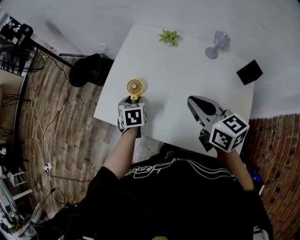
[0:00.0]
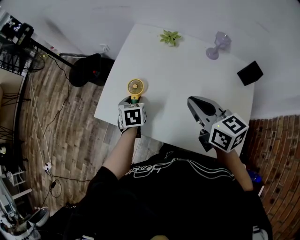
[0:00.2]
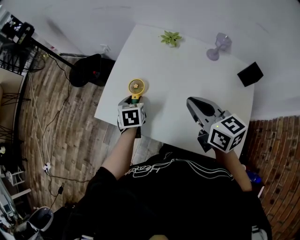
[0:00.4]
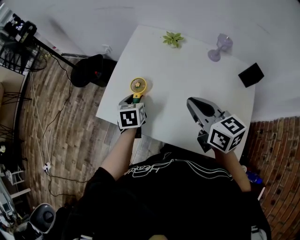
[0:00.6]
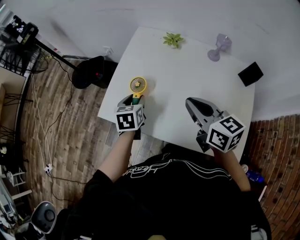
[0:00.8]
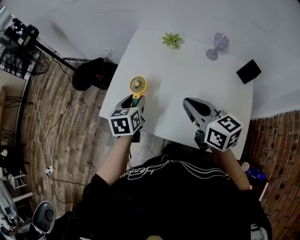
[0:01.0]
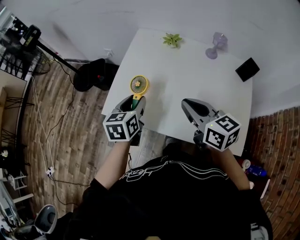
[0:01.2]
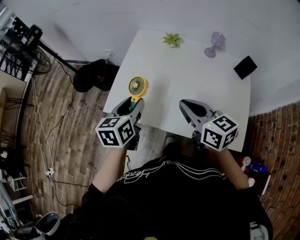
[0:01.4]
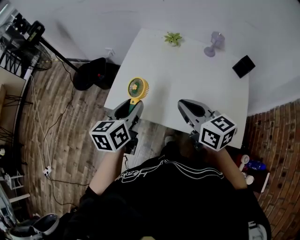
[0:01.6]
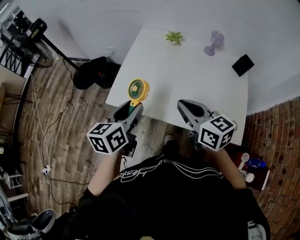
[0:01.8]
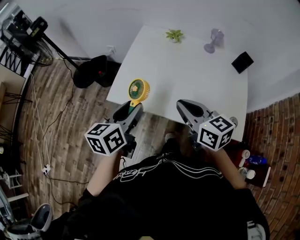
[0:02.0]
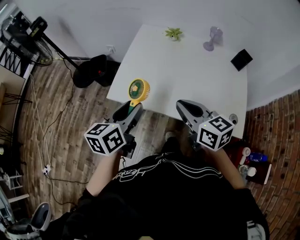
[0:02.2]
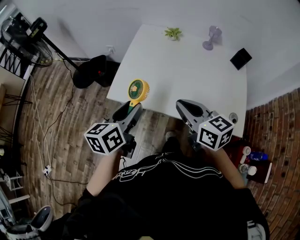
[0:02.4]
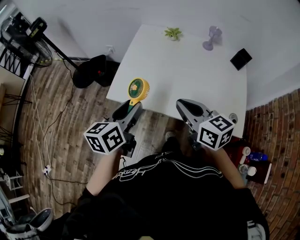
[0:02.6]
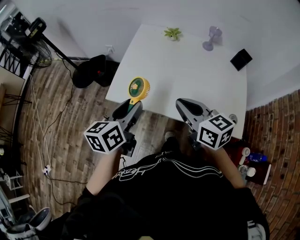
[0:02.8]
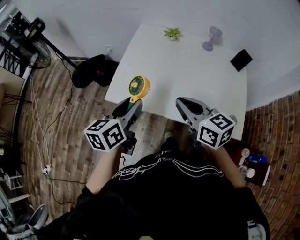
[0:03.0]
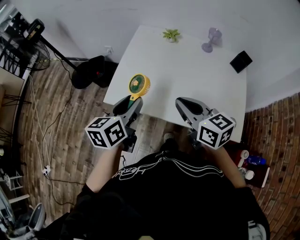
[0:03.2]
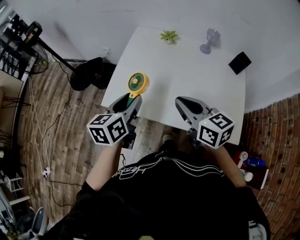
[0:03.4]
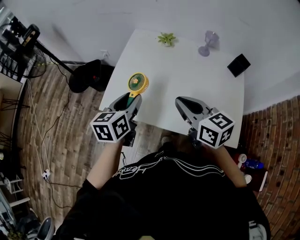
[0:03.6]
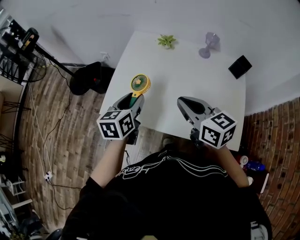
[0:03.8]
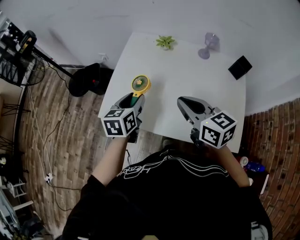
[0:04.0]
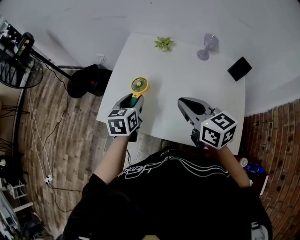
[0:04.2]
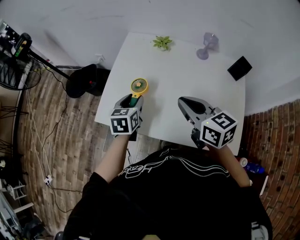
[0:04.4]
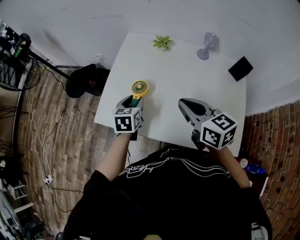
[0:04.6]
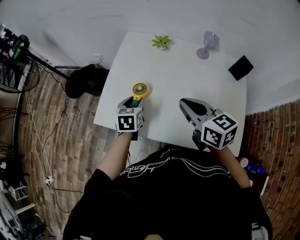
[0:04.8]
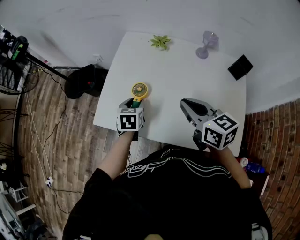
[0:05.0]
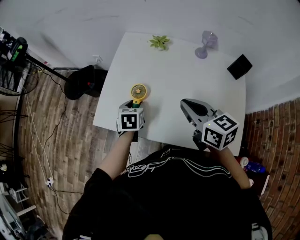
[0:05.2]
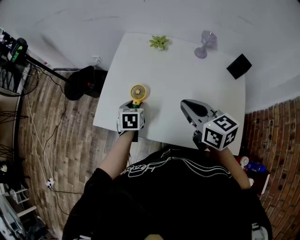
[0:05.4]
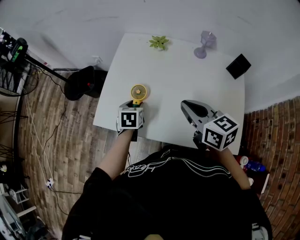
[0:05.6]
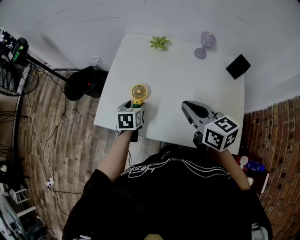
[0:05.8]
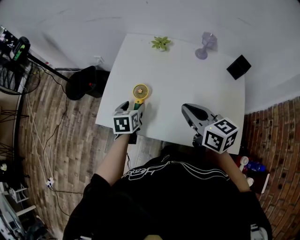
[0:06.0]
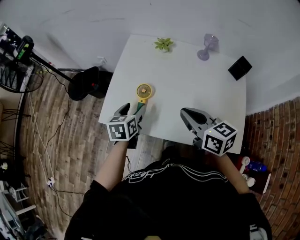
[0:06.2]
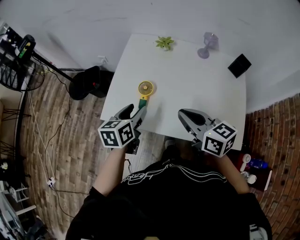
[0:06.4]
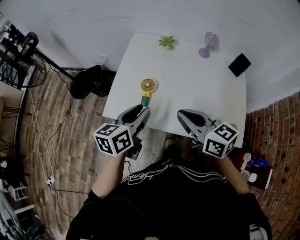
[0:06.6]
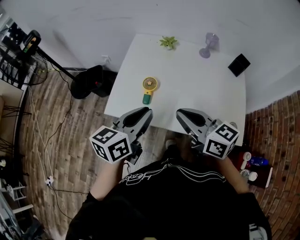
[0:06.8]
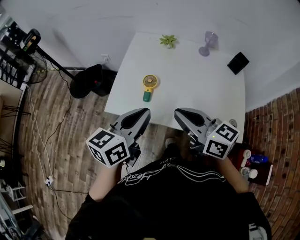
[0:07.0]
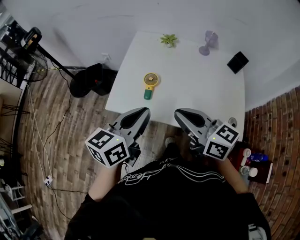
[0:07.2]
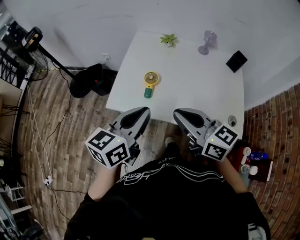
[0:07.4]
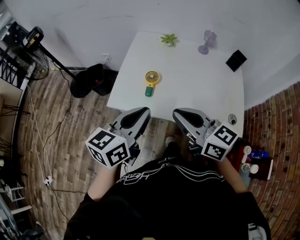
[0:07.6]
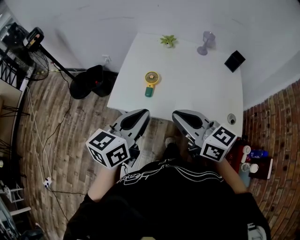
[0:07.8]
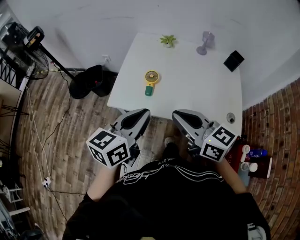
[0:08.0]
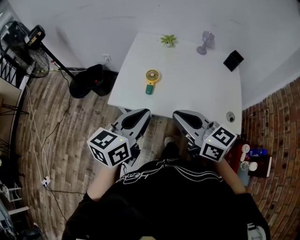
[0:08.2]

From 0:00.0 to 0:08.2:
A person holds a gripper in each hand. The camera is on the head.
From 0:00.0 to 0:01.6: The right gripper moves to the left and backward, approximately 10 cm. The left gripper moves upward and backward, roughly 20 cm, and turns by about 40 degrees.
From 0:03.2 to 0:05.0: The left gripper moves downward and forward, about 20 cm, and changes its angle by roughly 30 degrees; the right gripper goes about 10 cm forward and to the right.
From 0:05.0 to 0:06.6: The left gripper goes about 20 cm upward and backward, and turns by some 30 degrees; the right gripper moves backward and to the left, roughly 10 cm.
From 0:06.6 to 0:08.2: The right gripper heads backward and to the left, covering roughly 10 cm. The left gripper is displaced backward and upward by roughly 15 cm, and closes up.

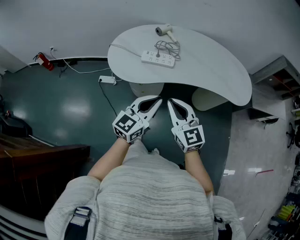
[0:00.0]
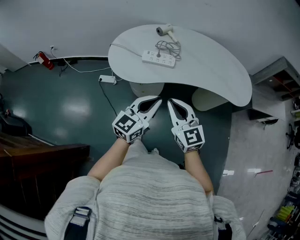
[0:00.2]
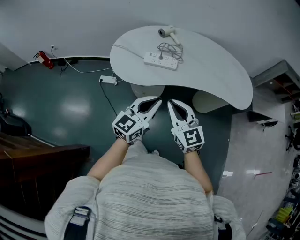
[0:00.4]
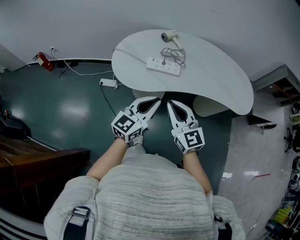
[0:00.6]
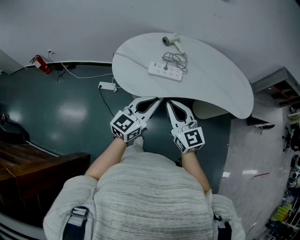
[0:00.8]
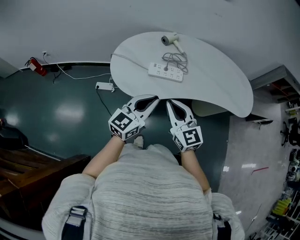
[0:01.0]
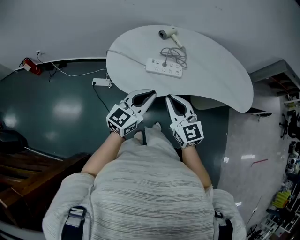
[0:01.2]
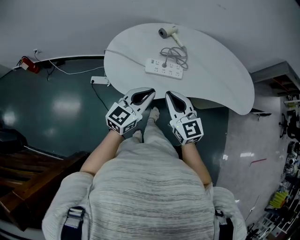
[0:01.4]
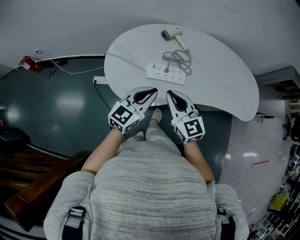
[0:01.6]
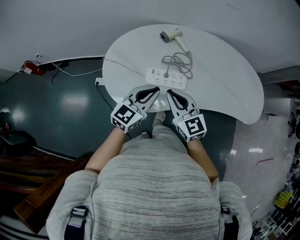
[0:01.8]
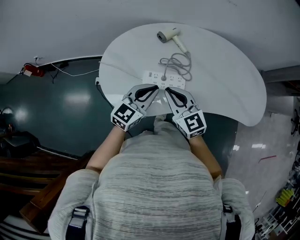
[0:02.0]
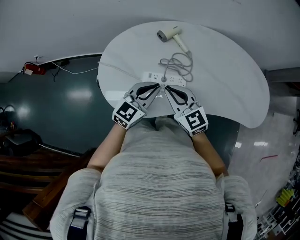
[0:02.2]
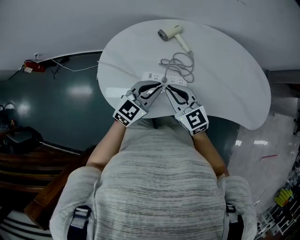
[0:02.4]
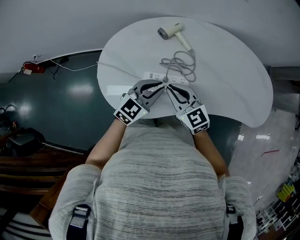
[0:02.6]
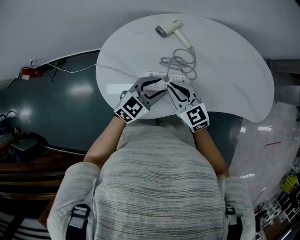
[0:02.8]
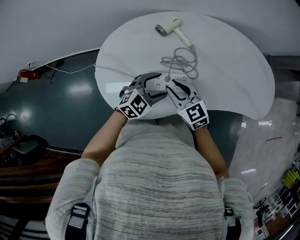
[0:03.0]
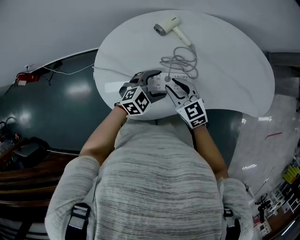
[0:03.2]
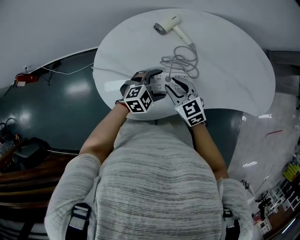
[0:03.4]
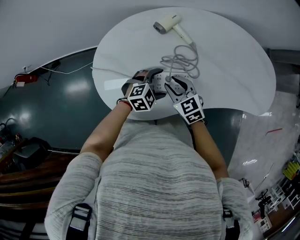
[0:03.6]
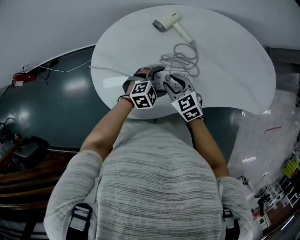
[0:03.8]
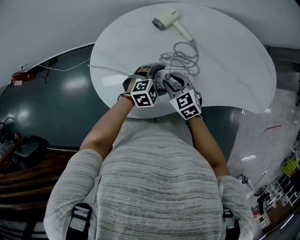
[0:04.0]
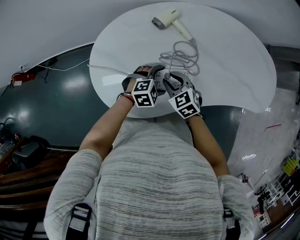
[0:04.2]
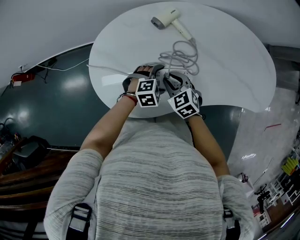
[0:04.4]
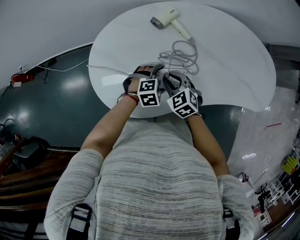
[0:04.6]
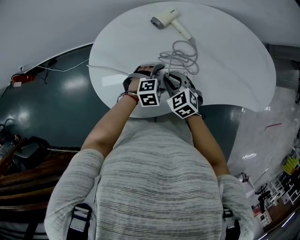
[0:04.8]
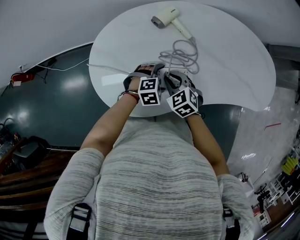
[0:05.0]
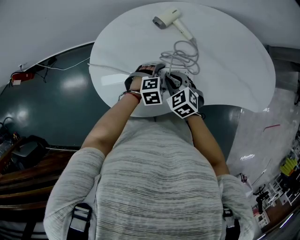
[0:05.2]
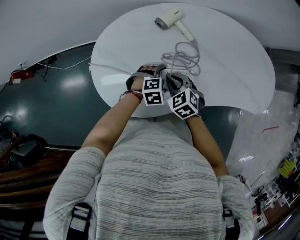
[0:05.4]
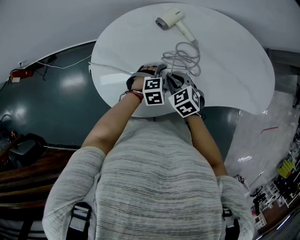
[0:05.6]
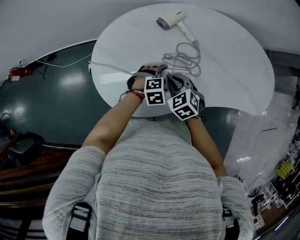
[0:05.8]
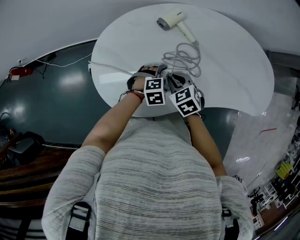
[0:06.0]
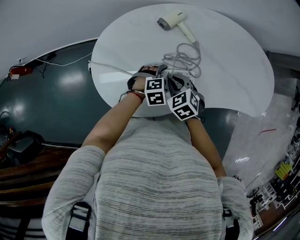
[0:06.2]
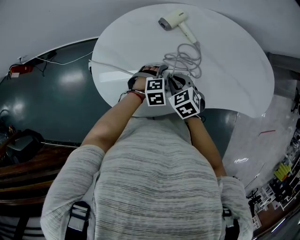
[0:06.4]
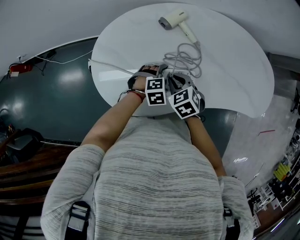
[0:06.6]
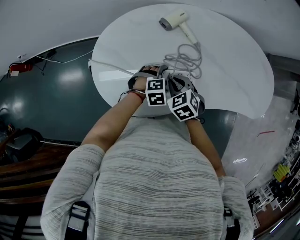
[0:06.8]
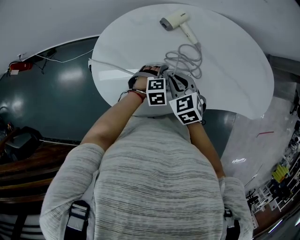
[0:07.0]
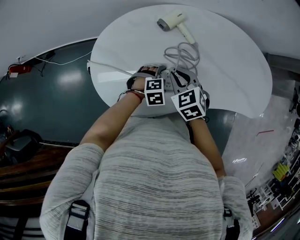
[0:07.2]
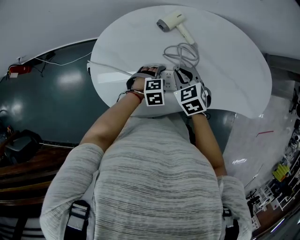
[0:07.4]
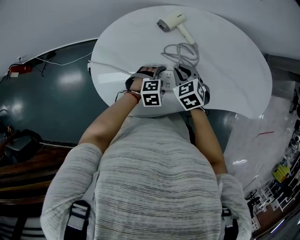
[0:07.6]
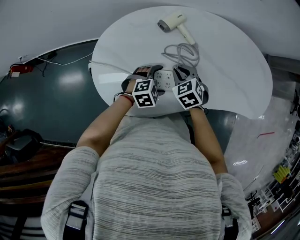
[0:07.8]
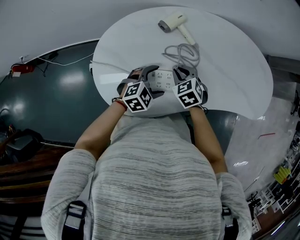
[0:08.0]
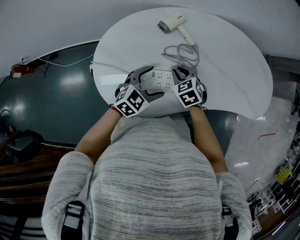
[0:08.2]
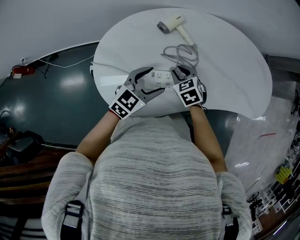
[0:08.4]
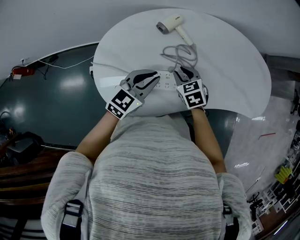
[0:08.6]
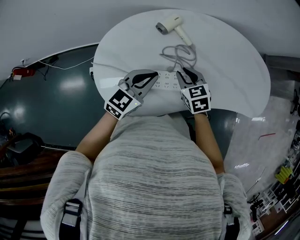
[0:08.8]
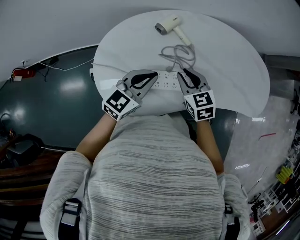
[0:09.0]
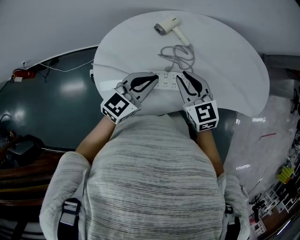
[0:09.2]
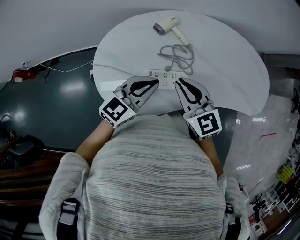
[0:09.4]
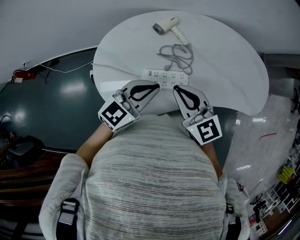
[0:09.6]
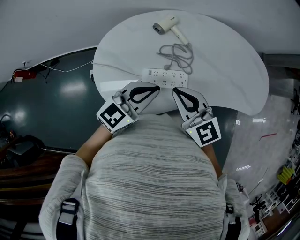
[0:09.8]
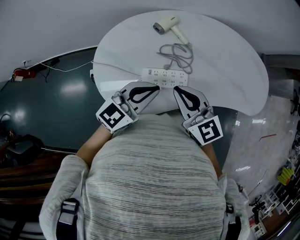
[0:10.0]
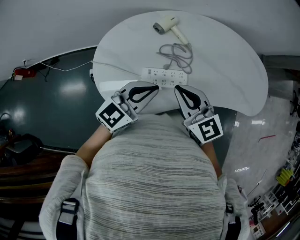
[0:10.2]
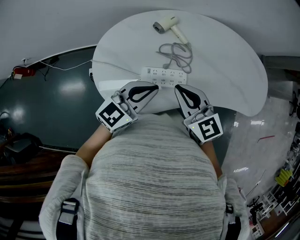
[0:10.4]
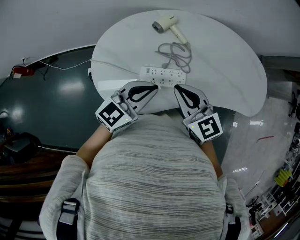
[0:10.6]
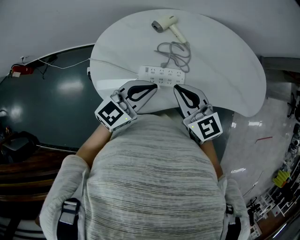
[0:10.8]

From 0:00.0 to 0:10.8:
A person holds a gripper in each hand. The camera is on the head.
From 0:00.0 to 0:01.6: The two grippers go approximately 25 cm forward and to the left.
From 0:01.6 to 0:03.0: The two grippers go some 20 cm forward and downward. The left gripper turns by approximately 40 degrees, and opens up.
From 0:03.0 to 0:04.6: Both grippers move downward, about 10 cm. The right gripper turns by about 20 degrees, while the left gripper changes its angle by some 30 degrees.
From 0:04.6 to 0:06.2: The grippers make only small movements.
From 0:06.2 to 0:07.8: The right gripper shifts some 5 cm forward.
From 0:07.8 to 0:09.2: The grippers both shift upward by roughly 15 cm. The left gripper tips its fingers upward by roughly 40 degrees, and closes its fingers. Meanwhile the right gripper rotates about 30 degrees.
From 0:09.2 to 0:10.8: The left gripper moves approximately 5 cm. Meanwhile the right gripper travels backward by some 5 cm.

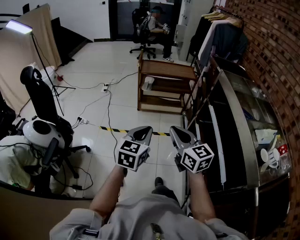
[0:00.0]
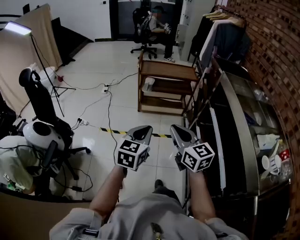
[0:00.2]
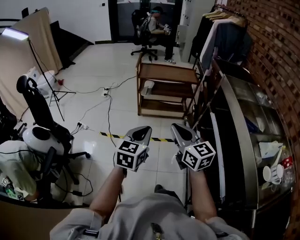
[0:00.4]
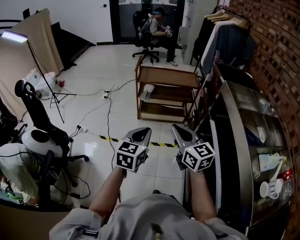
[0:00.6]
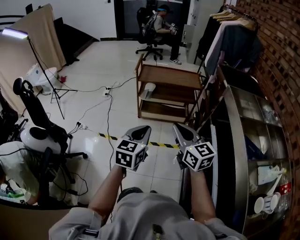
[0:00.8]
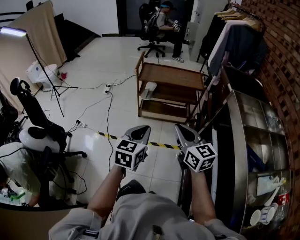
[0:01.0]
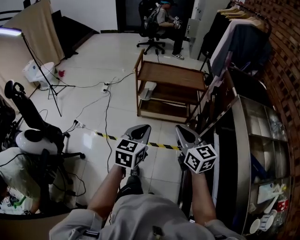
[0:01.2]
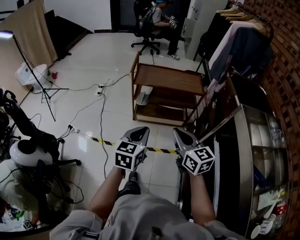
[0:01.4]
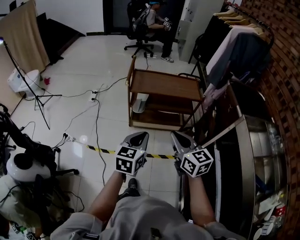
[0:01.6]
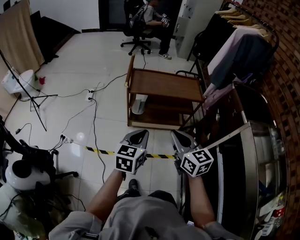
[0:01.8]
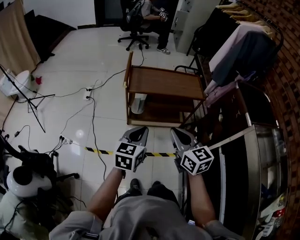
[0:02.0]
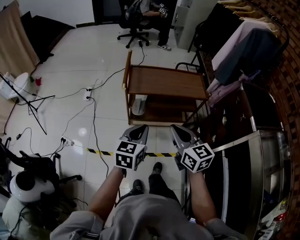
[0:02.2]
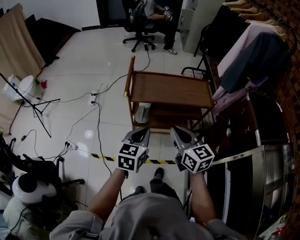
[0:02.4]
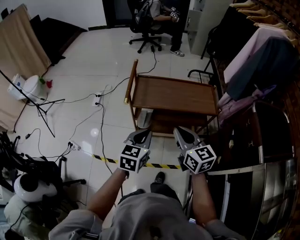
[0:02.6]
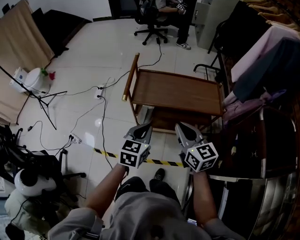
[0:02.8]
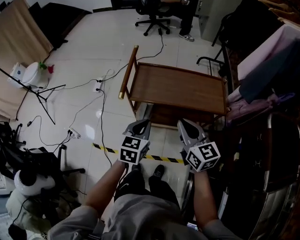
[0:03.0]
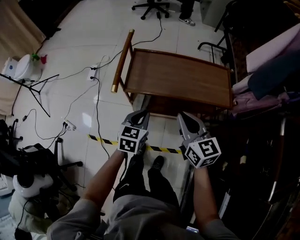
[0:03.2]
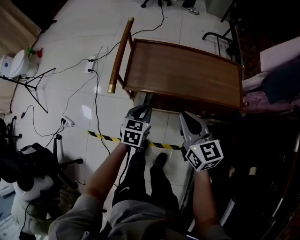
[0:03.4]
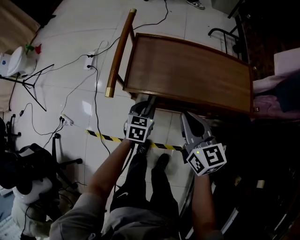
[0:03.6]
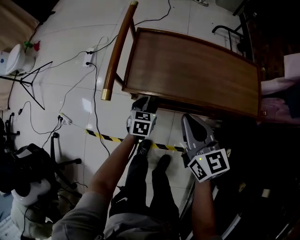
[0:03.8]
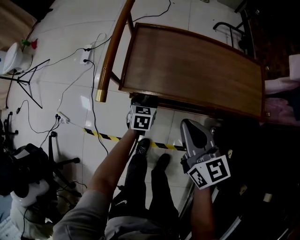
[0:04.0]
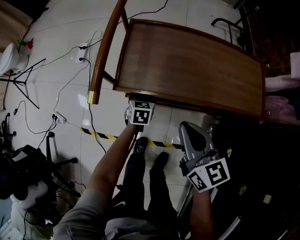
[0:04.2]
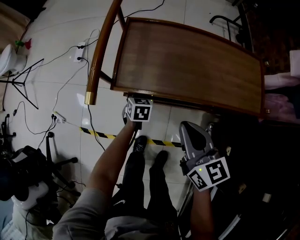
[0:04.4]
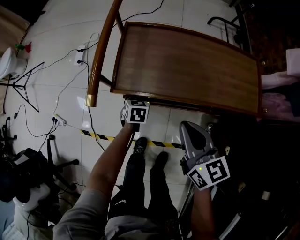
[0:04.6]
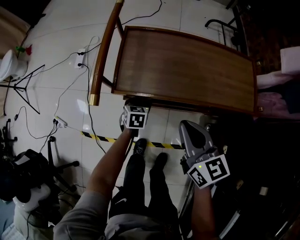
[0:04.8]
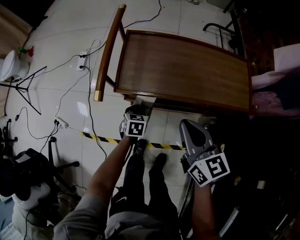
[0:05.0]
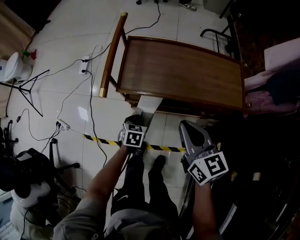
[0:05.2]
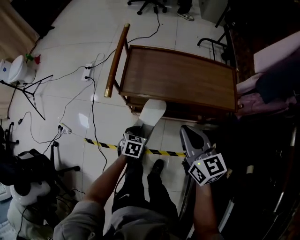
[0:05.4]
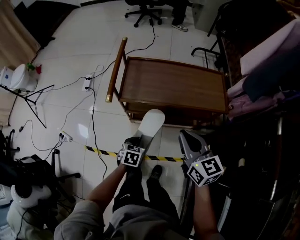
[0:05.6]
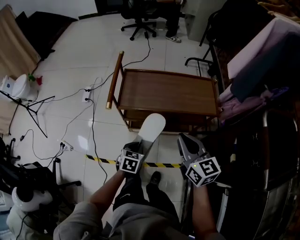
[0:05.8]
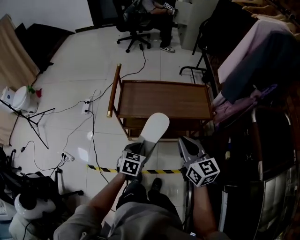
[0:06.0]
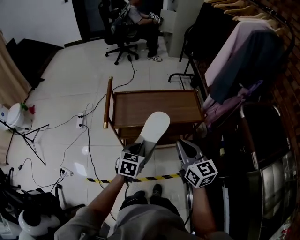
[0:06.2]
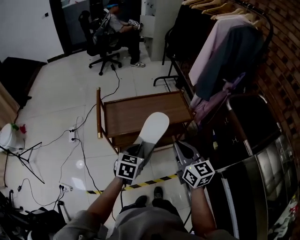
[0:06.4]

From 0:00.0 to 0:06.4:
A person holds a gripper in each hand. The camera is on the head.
From 0:00.0 to 0:01.6: Both grippers are carried forward, approximately 40 cm.
From 0:01.6 to 0:03.2: The right gripper heads forward, covering approximately 35 cm. The left gripper heads forward and downward, covering about 40 cm.
From 0:03.2 to 0:04.8: The left gripper is displaced downward and forward by roughly 30 cm, rotates roughly 20 degrees, and opens, then closes once more. Meanwhile the right gripper is displaced downward and forward by some 15 cm.
From 0:04.8 to 0:06.4: The right gripper is displaced upward by approximately 20 cm, and changes its angle by roughly 20 degrees. The left gripper moves upward, roughly 40 cm, and changes its angle by roughly 30 degrees.